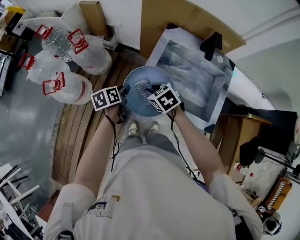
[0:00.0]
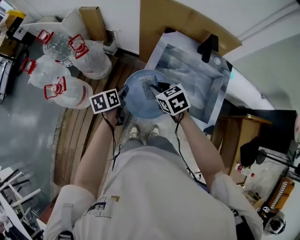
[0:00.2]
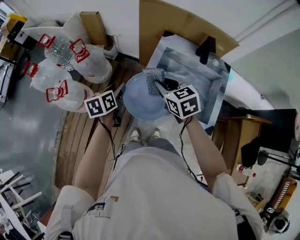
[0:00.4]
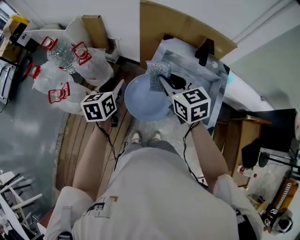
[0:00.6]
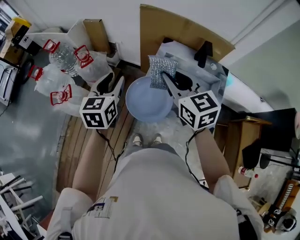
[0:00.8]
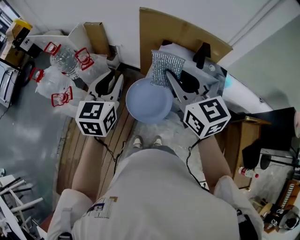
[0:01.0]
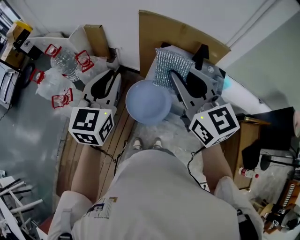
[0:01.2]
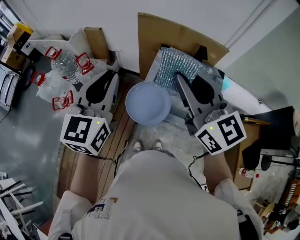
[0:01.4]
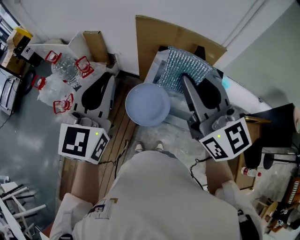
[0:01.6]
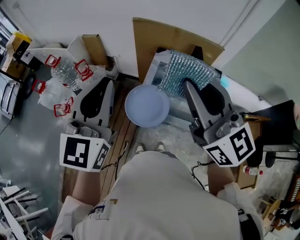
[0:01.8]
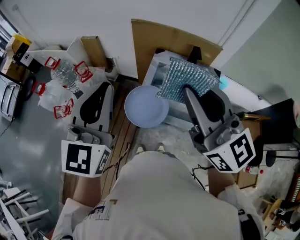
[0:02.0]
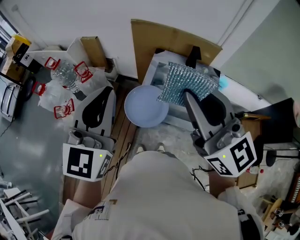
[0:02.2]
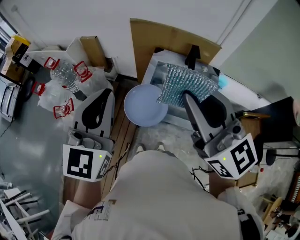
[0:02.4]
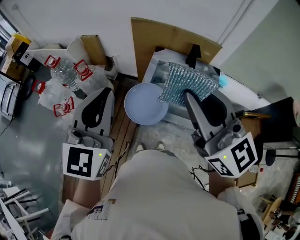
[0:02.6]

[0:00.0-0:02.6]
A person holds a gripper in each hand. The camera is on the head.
0:00.0 to 0:01.2: Both grippers move upward, about 35 cm. The left gripper rotates around the line of its fingers by approximately 50 degrees, clockwise from behind, and closes, while the right gripper tips its fingers upward by roughly 50 degrees.
0:01.2 to 0:02.6: The grippers both shift backward and upward by some 15 cm.

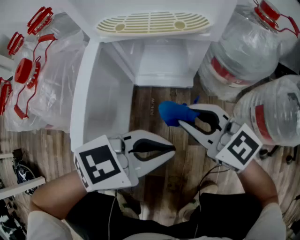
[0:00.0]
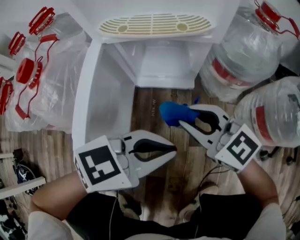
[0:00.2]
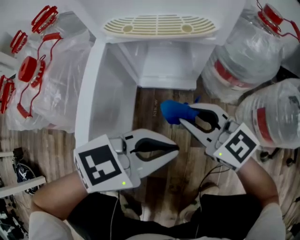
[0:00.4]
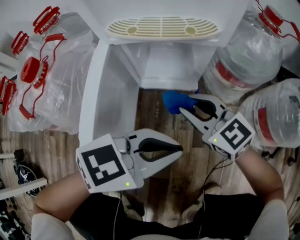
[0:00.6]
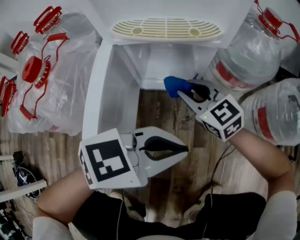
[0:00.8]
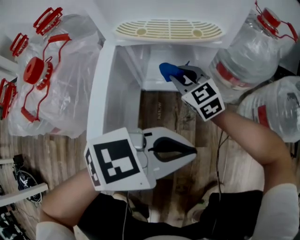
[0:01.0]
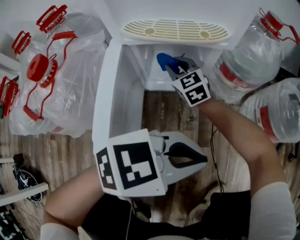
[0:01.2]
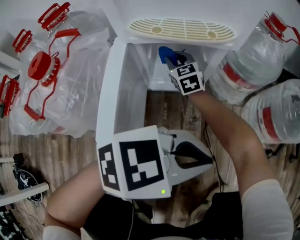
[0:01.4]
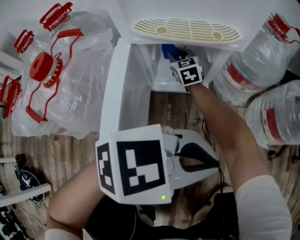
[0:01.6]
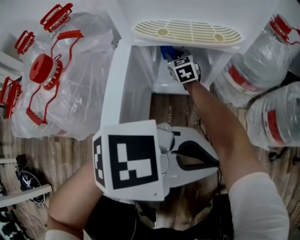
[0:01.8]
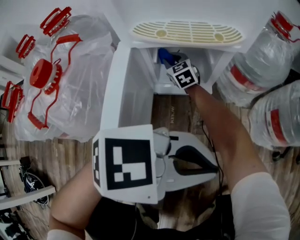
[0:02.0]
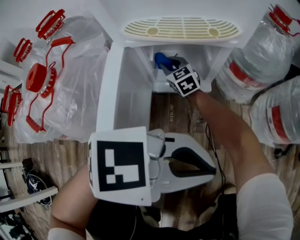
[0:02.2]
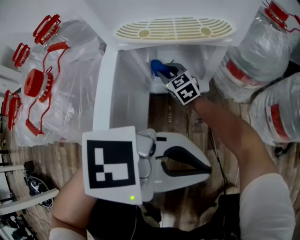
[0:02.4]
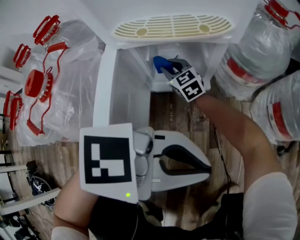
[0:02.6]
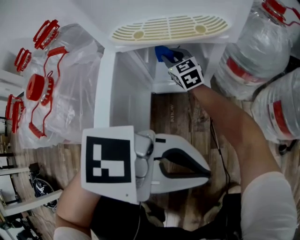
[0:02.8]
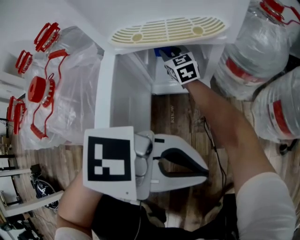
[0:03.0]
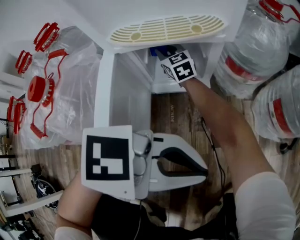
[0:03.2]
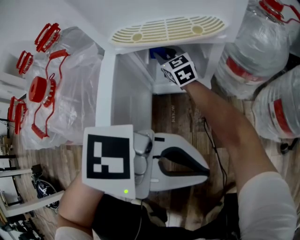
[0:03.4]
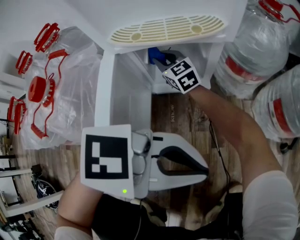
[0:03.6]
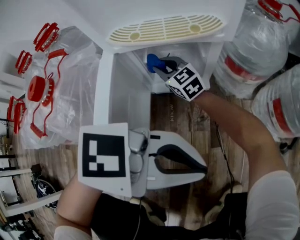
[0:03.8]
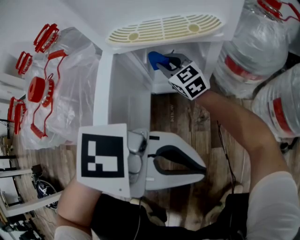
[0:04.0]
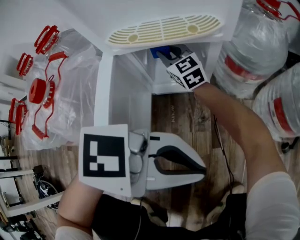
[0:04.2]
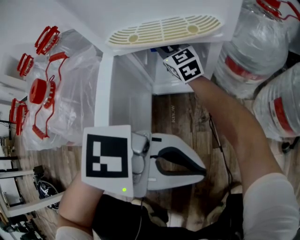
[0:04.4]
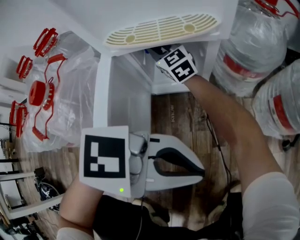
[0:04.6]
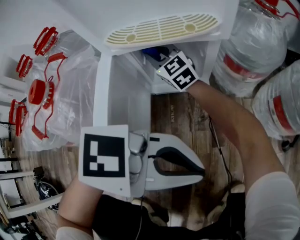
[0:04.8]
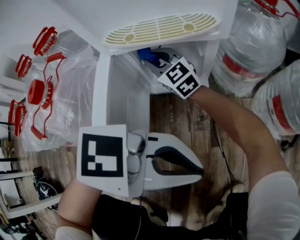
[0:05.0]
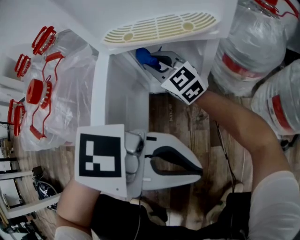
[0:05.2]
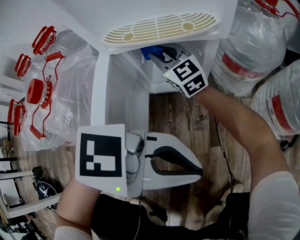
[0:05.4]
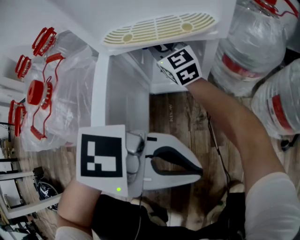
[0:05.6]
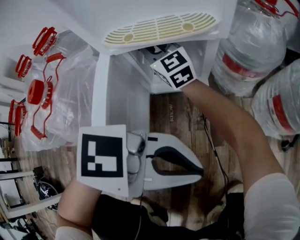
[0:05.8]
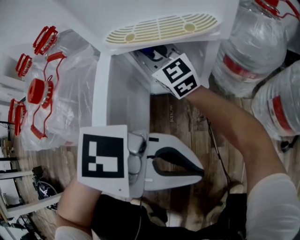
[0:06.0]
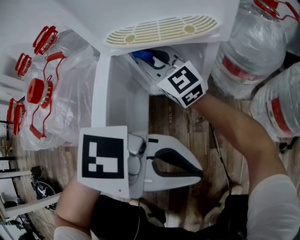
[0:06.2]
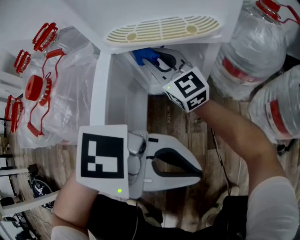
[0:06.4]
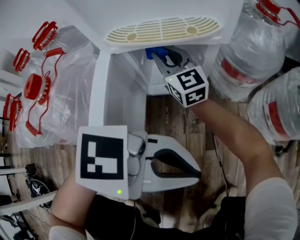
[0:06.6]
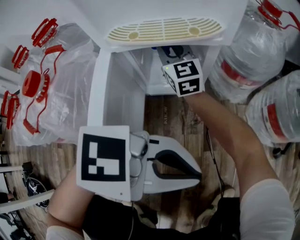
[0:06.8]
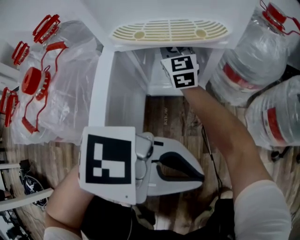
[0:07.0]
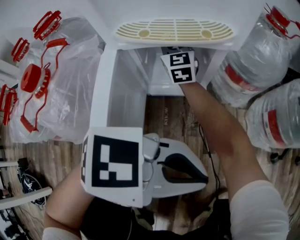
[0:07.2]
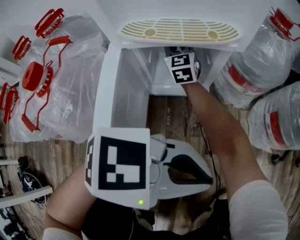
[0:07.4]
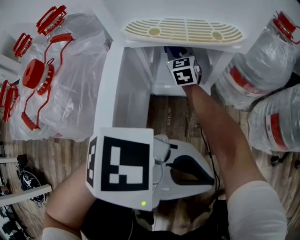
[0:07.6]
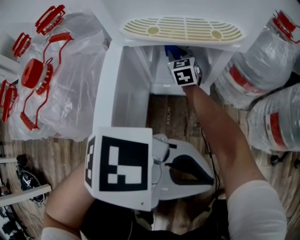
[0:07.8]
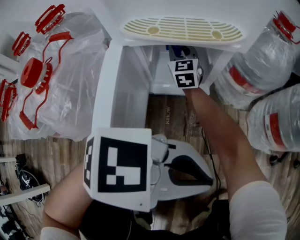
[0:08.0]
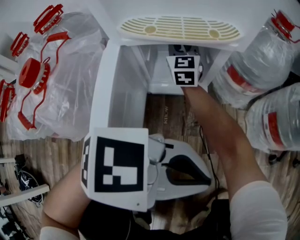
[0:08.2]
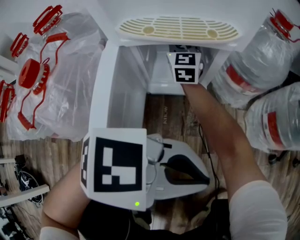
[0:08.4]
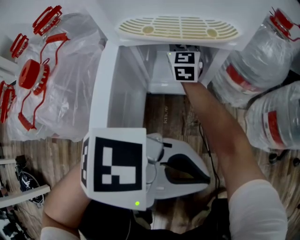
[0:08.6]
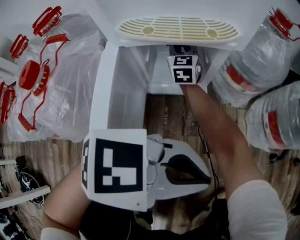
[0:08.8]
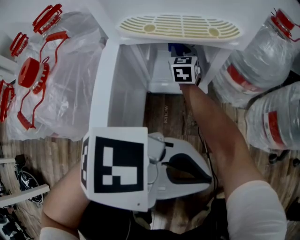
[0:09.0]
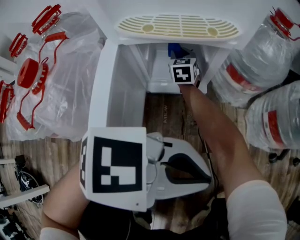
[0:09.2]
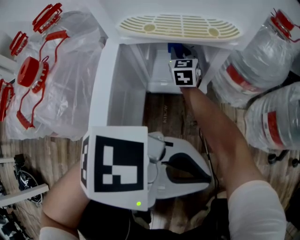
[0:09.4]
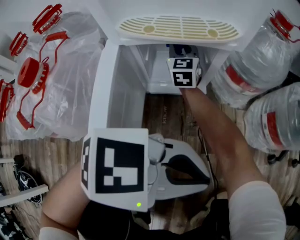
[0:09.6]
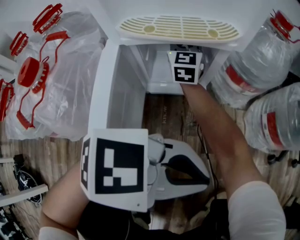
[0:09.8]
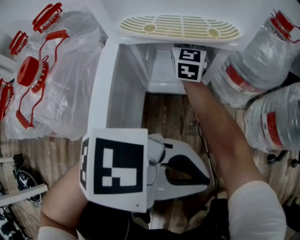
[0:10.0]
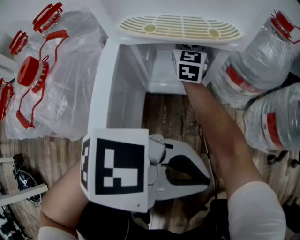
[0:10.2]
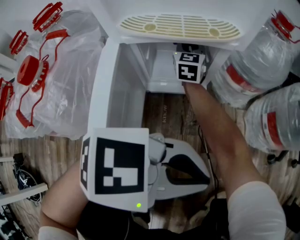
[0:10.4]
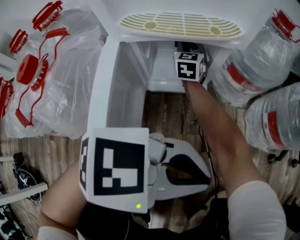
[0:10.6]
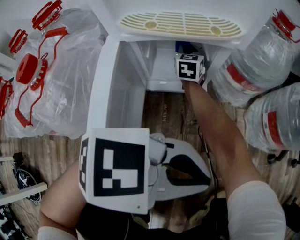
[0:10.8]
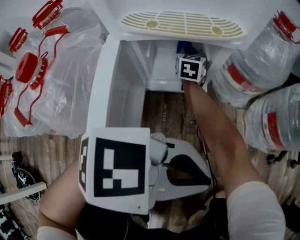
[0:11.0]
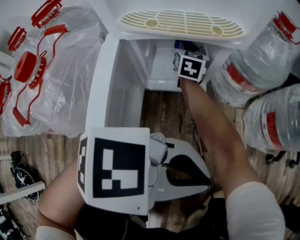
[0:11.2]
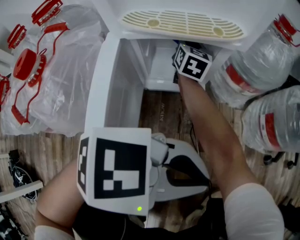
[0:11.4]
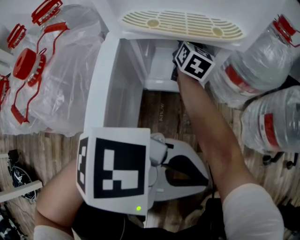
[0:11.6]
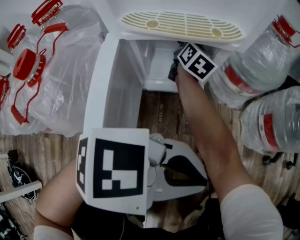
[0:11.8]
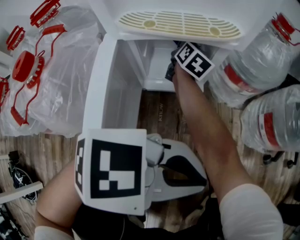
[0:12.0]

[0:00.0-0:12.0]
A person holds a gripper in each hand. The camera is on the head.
0:00.0 to 0:01.6: The right gripper moves some 35 cm, and changes its angle by about 30 degrees. Meanwhile the left gripper shifts some 5 cm upward, and swivels some 20 degrees.
0:03.0 to 0:04.4: The right gripper heads upward, covering approximately 5 cm.
0:04.4 to 0:06.0: The right gripper shifts by some 10 cm.
0:06.0 to 0:07.6: The right gripper is displaced downward by roughly 15 cm, and turns by approximately 30 degrees.
0:07.6 to 0:09.0: The right gripper reaches about 10 cm upward, then returns.
0:10.4 to 0:12.0: The right gripper travels downward and back again, roughly 5 cm each way, and rotates some 40 degrees.

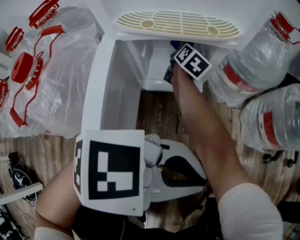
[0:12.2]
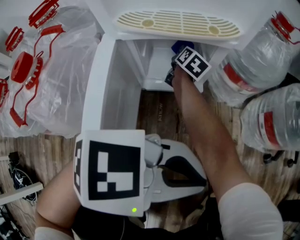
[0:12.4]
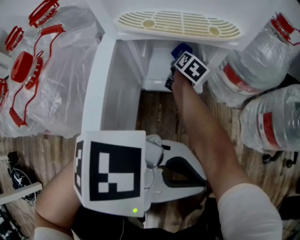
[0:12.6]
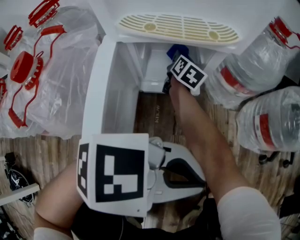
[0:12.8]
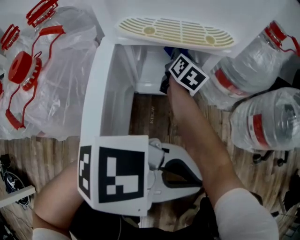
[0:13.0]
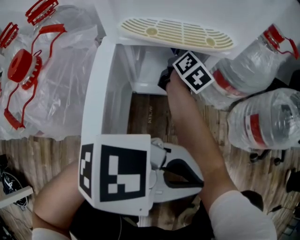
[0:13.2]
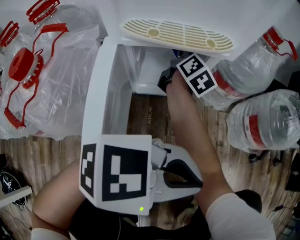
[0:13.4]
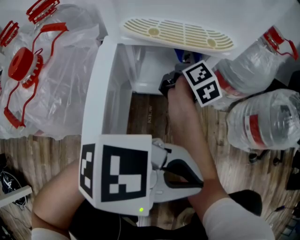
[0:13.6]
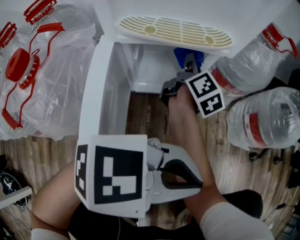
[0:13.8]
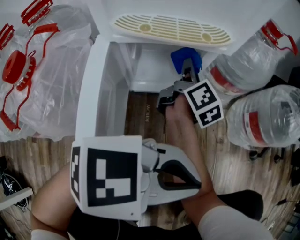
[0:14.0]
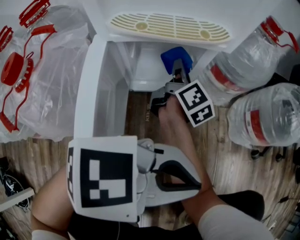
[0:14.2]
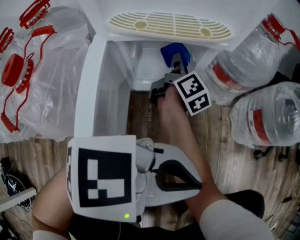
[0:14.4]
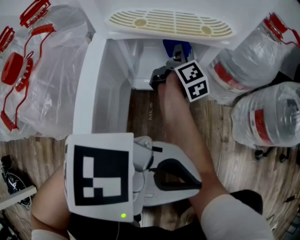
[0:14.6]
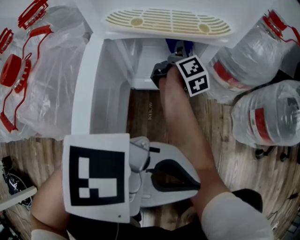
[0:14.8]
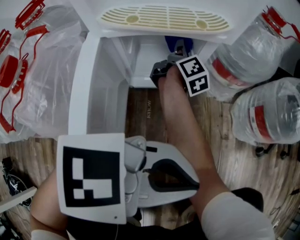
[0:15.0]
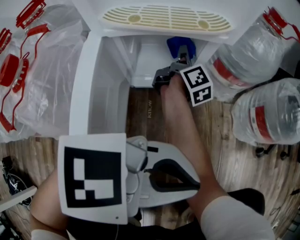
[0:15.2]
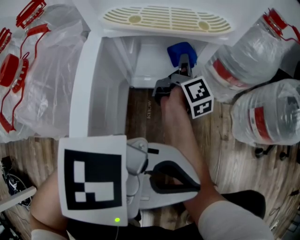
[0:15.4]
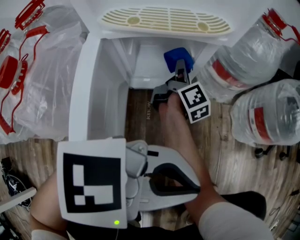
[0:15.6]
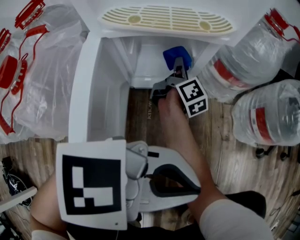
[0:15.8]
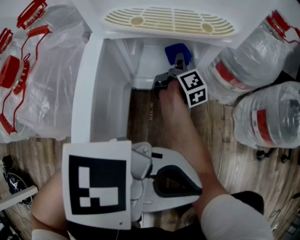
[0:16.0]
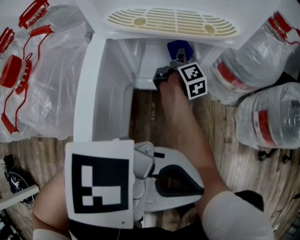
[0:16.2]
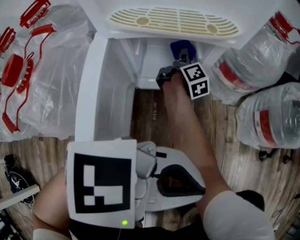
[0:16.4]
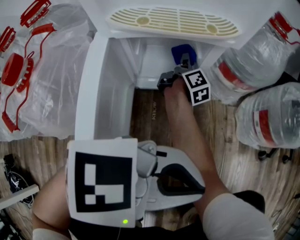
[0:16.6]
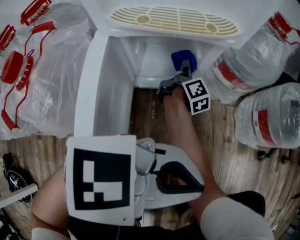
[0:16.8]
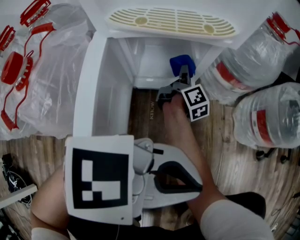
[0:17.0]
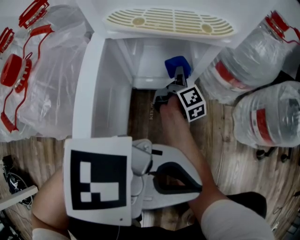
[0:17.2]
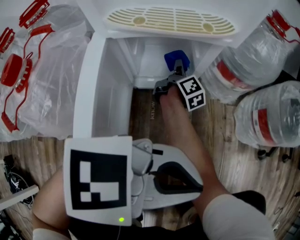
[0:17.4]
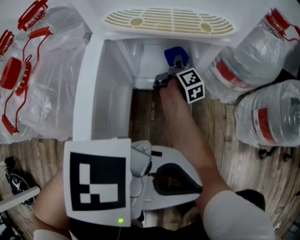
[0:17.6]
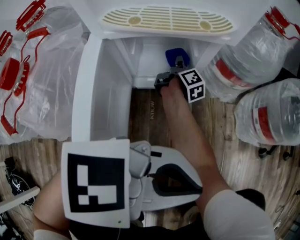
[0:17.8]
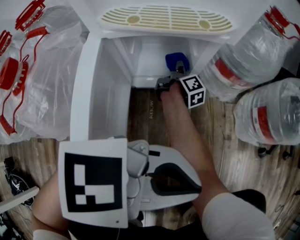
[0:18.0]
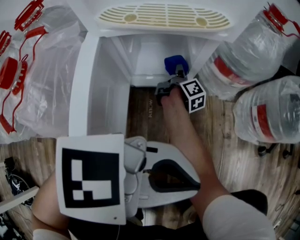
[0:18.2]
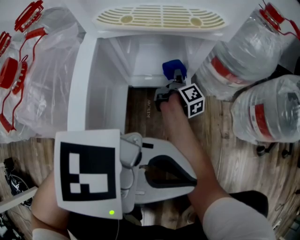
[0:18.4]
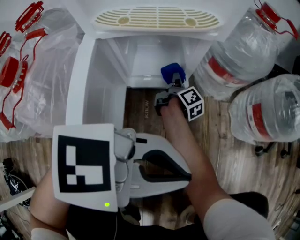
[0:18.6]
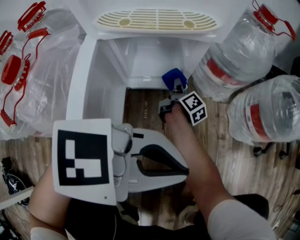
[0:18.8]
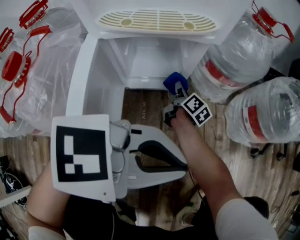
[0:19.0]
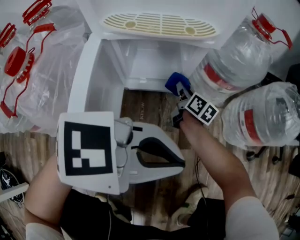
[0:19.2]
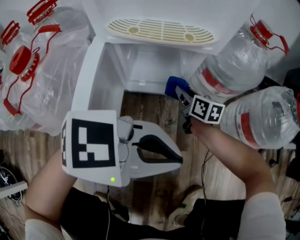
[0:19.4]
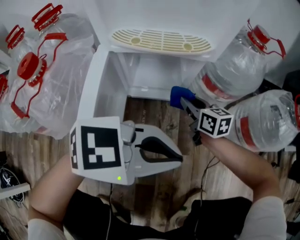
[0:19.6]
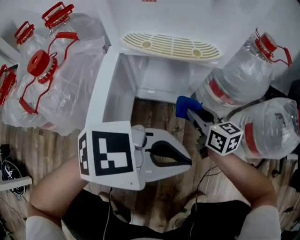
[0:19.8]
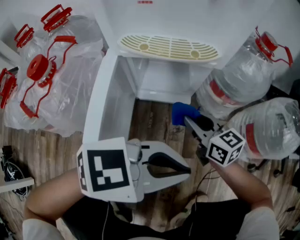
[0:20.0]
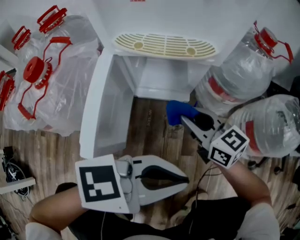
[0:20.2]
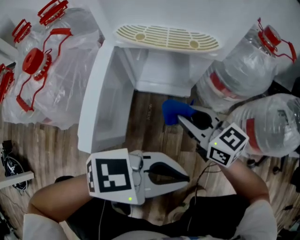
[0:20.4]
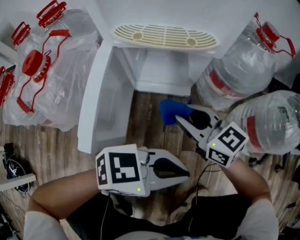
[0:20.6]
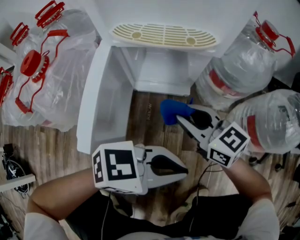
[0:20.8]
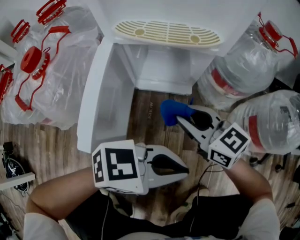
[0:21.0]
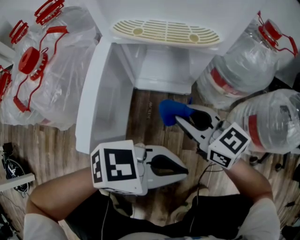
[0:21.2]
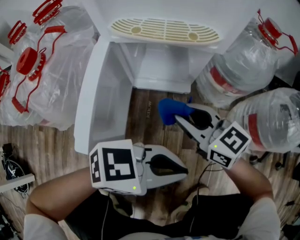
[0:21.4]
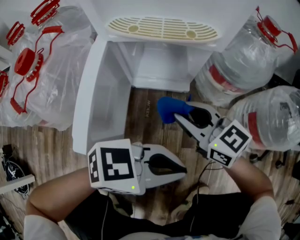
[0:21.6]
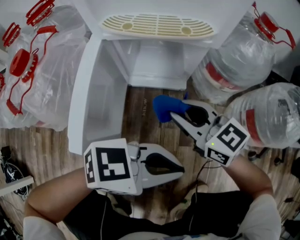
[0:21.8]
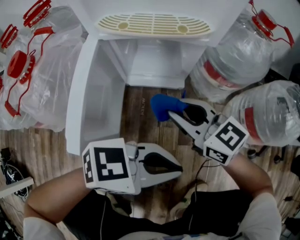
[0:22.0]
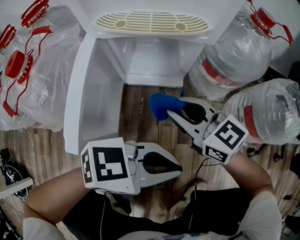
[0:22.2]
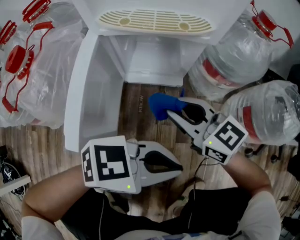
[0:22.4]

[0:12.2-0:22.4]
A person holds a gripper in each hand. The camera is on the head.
0:12.2 to 0:13.6: The right gripper shifts some 10 cm upward and to the right.
0:13.6 to 0:15.2: The right gripper goes about 5 cm downward.
0:15.2 to 0:16.6: The right gripper heads downward, covering roughly 5 cm.
0:16.6 to 0:18.0: The right gripper is displaced downward by about 5 cm.
0:18.0 to 0:19.4: The right gripper shifts by some 10 cm, and rotates around the line of its fingers by roughly 50 degrees, counterclockwise from behind.
0:19.4 to 0:21.0: The right gripper ends up approximately 20 cm from where it was, and swivels about 40 degrees. Meanwhile the left gripper moves about 5 cm.
0:21.0 to 0:22.4: The two grippers keep their place.
